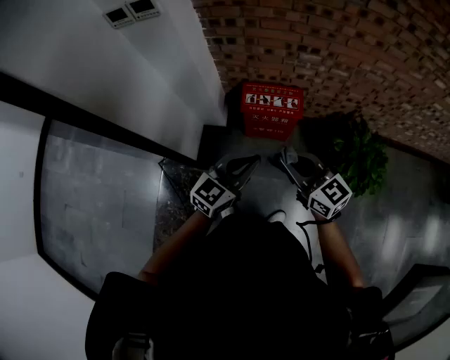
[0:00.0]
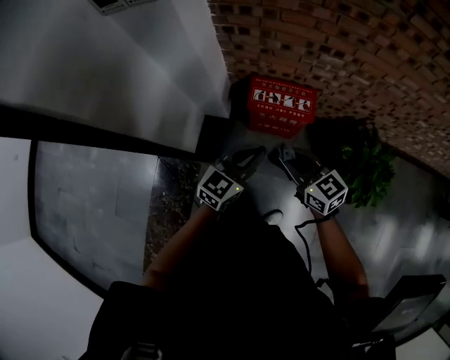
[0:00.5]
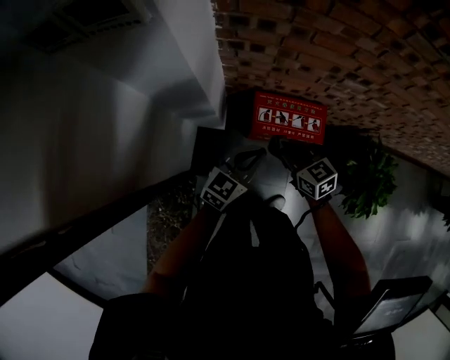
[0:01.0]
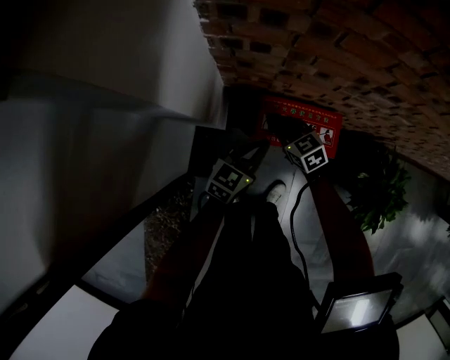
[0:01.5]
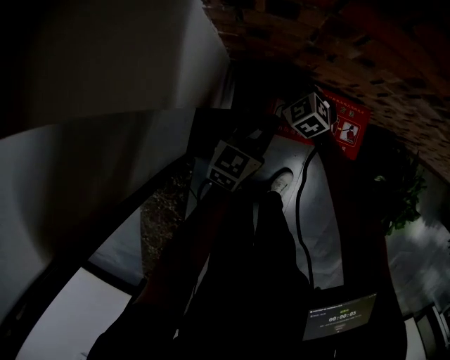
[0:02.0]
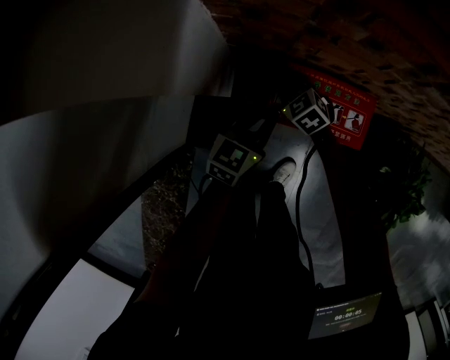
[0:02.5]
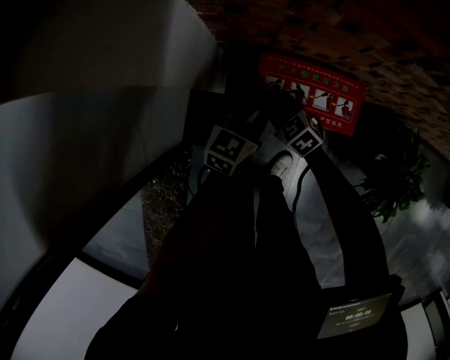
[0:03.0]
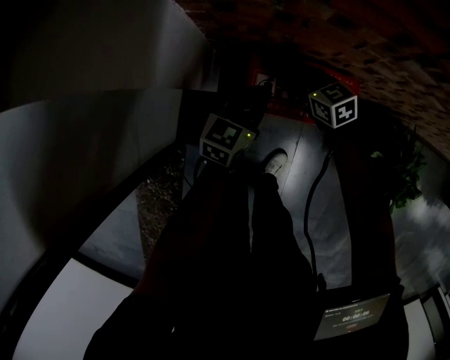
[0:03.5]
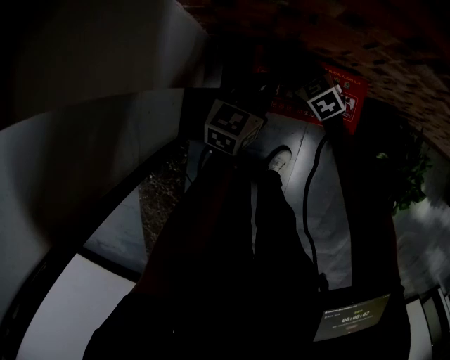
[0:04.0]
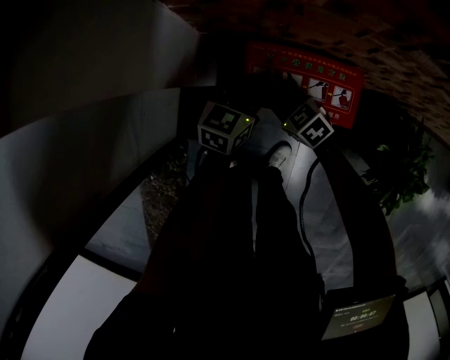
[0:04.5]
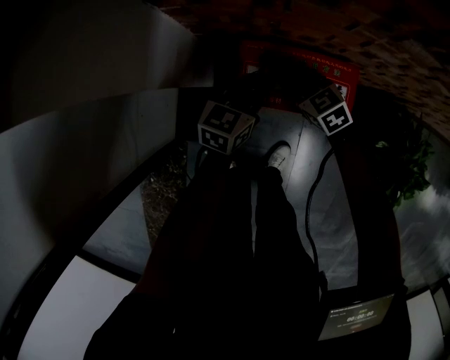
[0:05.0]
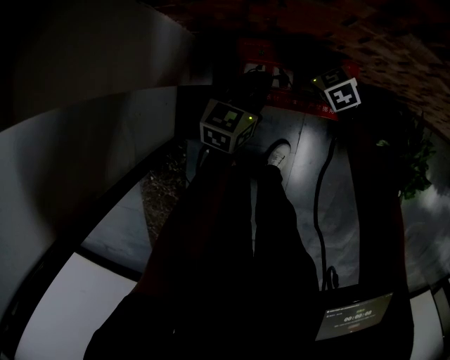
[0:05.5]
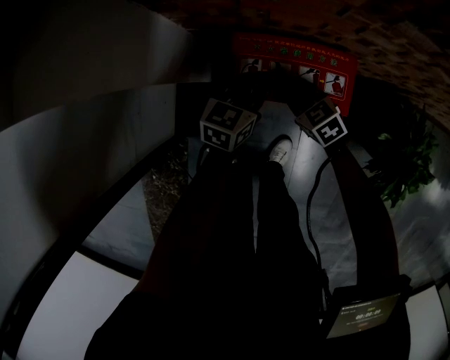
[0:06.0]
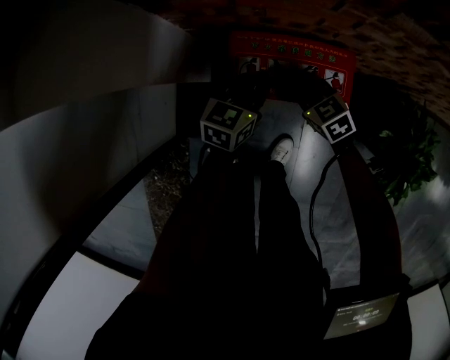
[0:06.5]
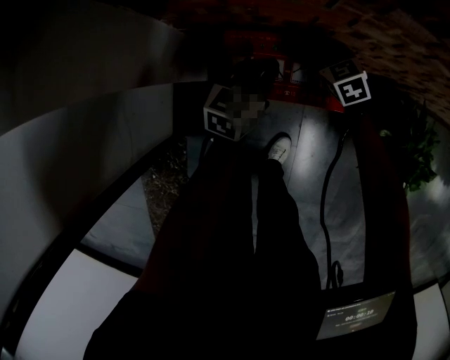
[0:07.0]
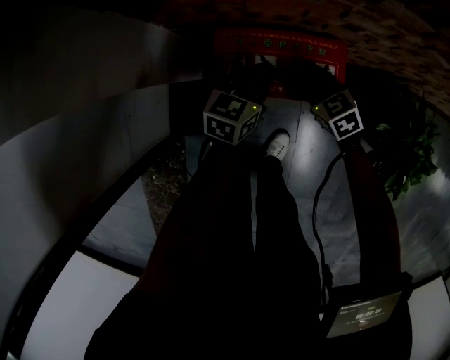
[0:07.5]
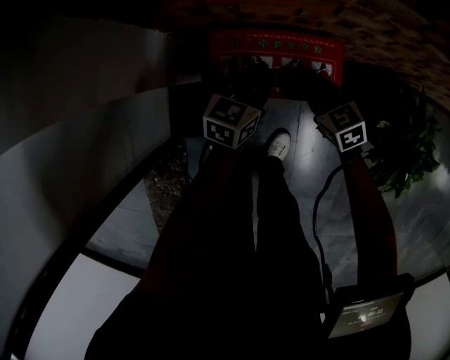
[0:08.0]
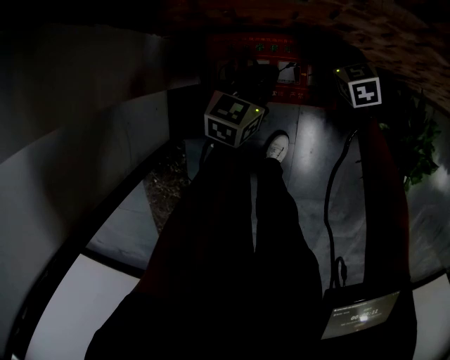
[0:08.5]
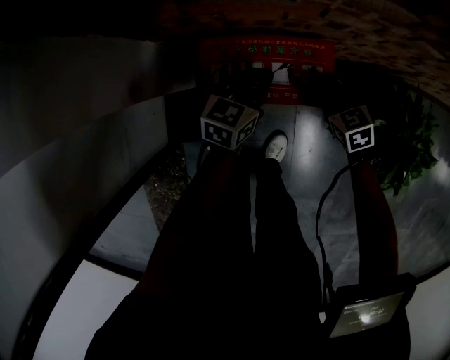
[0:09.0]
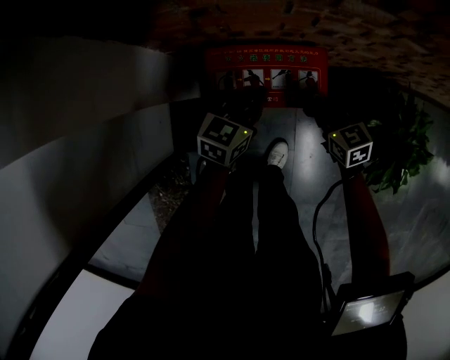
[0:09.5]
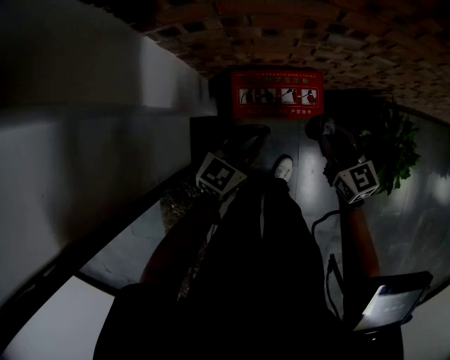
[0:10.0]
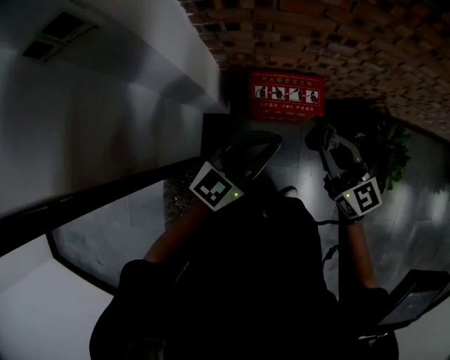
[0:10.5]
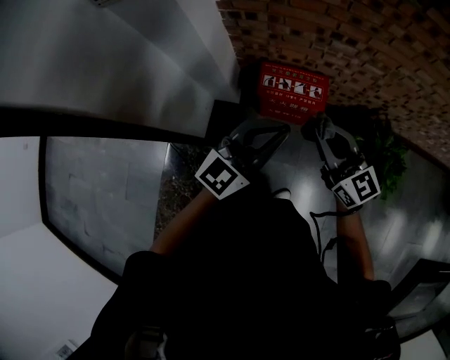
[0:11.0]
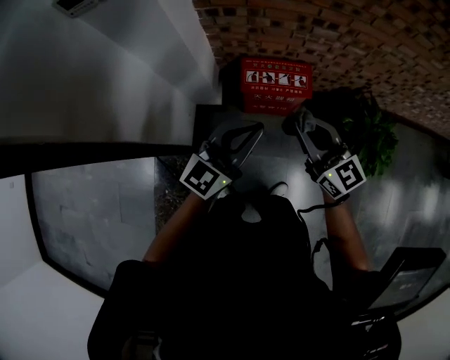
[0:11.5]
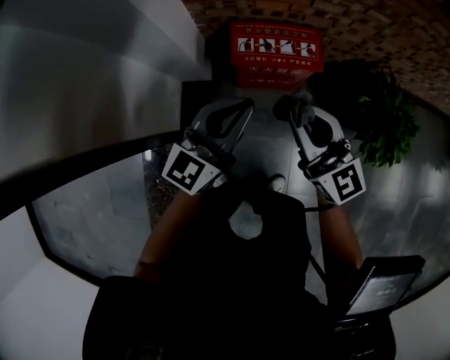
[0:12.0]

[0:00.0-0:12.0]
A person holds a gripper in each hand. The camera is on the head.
0:00.0 to 0:02.0: The two grippers travel together, forward, some 50 cm. The grippers both shift downward by some 40 cm. The right gripper tips its fingers downward by approximately 40 degrees.
0:02.0 to 0:04.0: The left gripper moves roughly 5 cm, while the right gripper goes approximately 5 cm to the right, and reaches approximately 15 cm backward, then returns.
0:04.0 to 0:06.0: The left gripper changes place by approximately 5 cm. Meanwhile the right gripper swings left and right, about 15 cm each way, with 2 reversals.
0:06.0 to 0:08.0: The right gripper goes roughly 10 cm to the right, and reaches some 10 cm forward, then returns. The left gripper shifts roughly 5 cm to the right.
0:08.0 to 0:10.0: The left gripper travels upward and backward by roughly 25 cm, and changes its angle by approximately 20 degrees, while the right gripper shifts some 30 cm upward, and turns by roughly 30 degrees.
0:10.0 to 0:12.0: The right gripper shifts roughly 20 cm backward and to the left, moves some 20 cm upward and comes back, and rotates roughly 20 degrees; the left gripper is displaced backward by roughly 15 cm, goes upward and returns, some 25 cm each way, and swivels roughly 20 degrees.

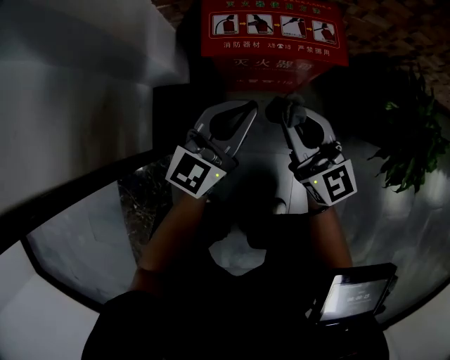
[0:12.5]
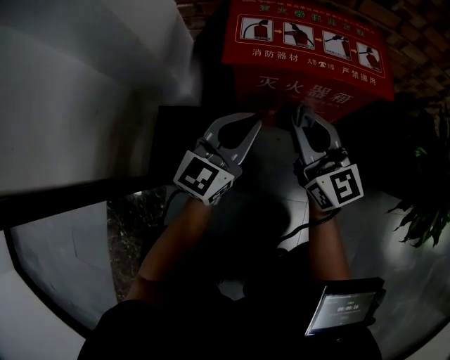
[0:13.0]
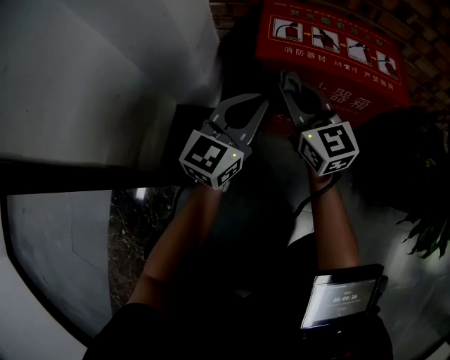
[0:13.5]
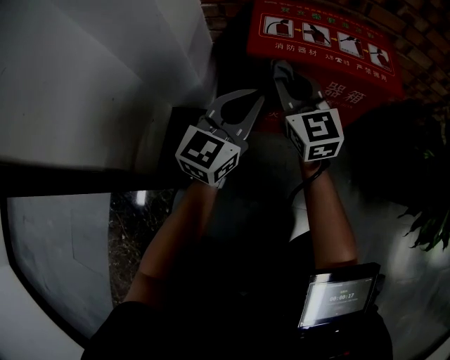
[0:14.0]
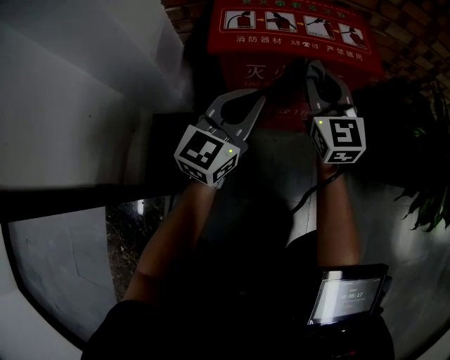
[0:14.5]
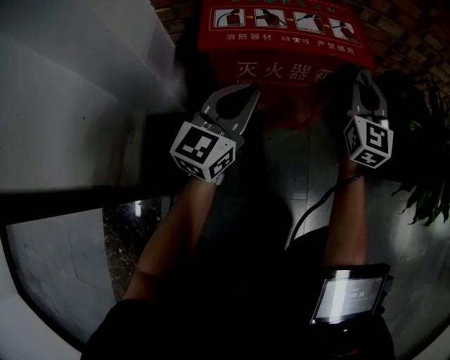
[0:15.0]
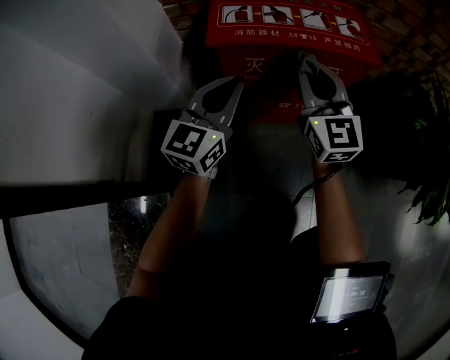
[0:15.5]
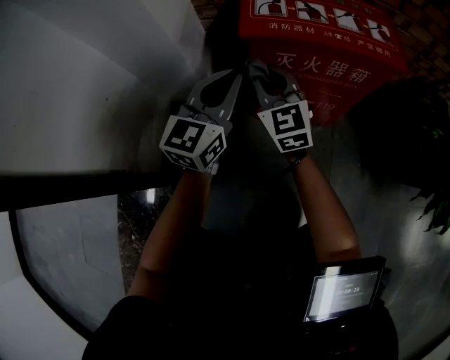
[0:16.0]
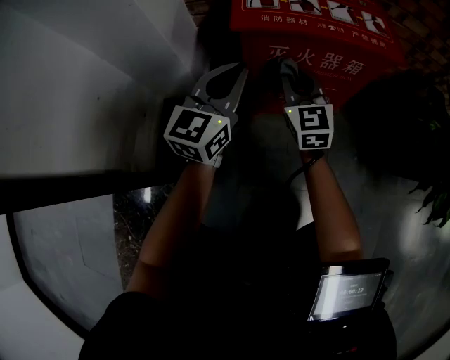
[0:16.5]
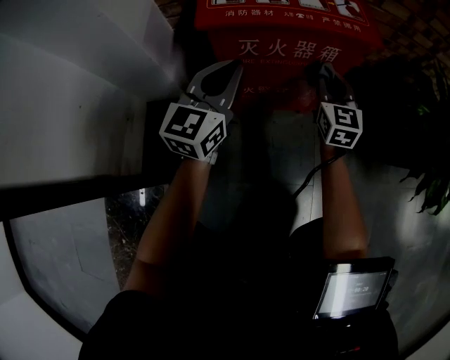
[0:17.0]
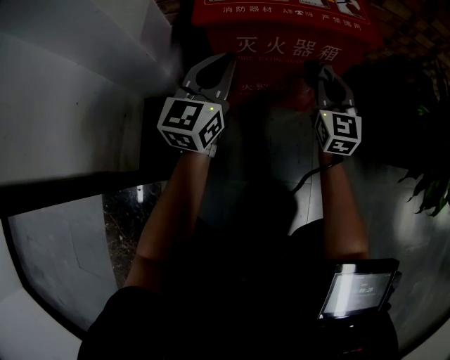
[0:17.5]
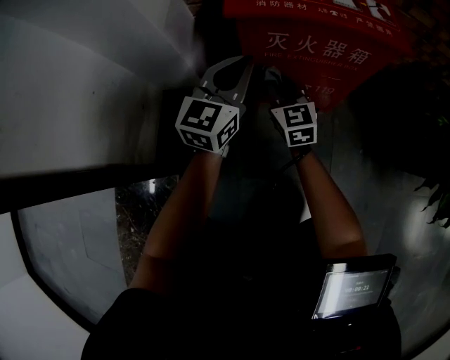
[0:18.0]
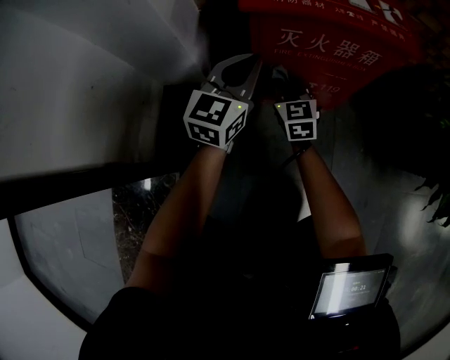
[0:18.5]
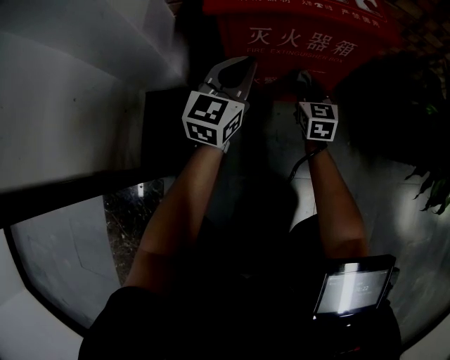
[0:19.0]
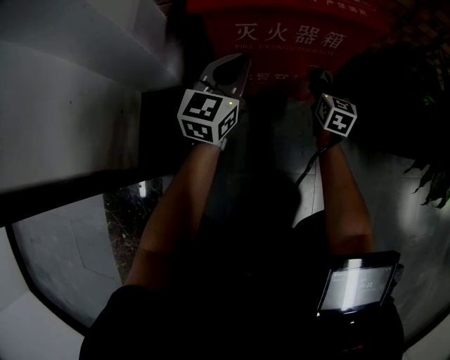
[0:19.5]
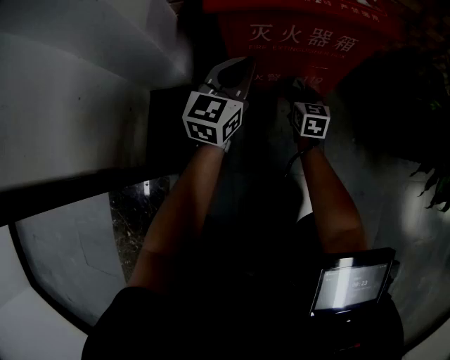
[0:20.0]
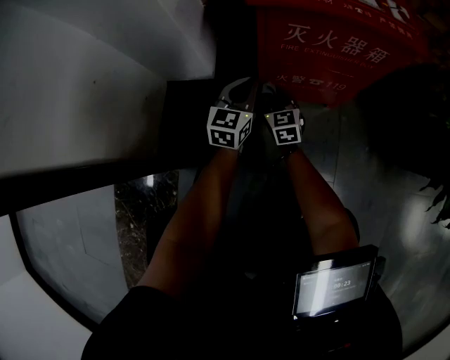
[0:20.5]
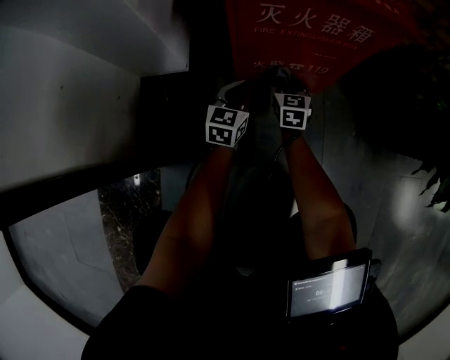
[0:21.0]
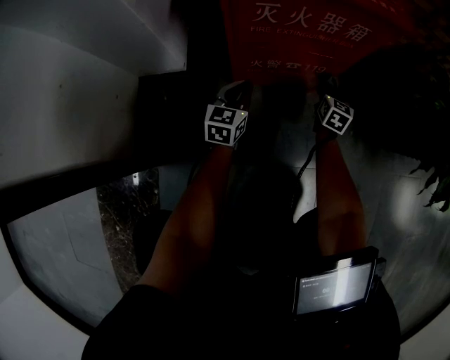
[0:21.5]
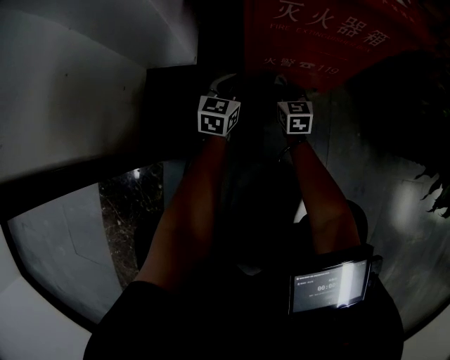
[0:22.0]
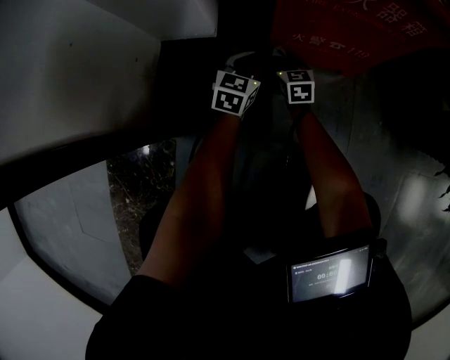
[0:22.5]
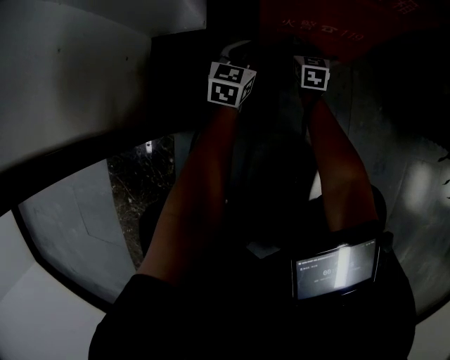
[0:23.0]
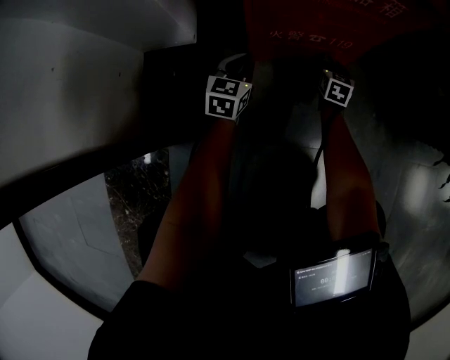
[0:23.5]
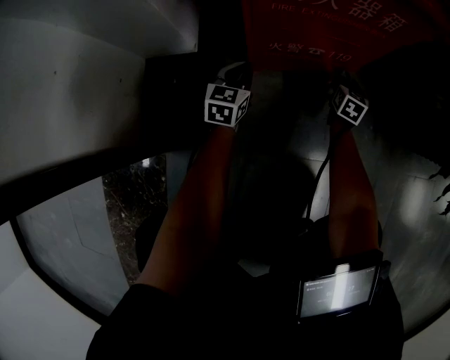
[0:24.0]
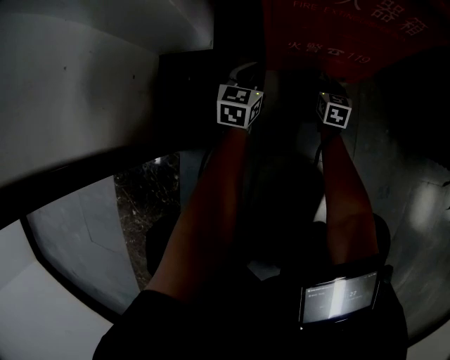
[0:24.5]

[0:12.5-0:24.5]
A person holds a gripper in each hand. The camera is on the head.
0:12.5 to 0:14.5: The left gripper shifts approximately 15 cm downward and forward. The right gripper moves forward and downward, roughly 20 cm, moves roughly 10 cm to the left and comes back, and swivels roughly 30 degrees.
0:14.5 to 0:16.5: The left gripper shifts about 10 cm to the left; the right gripper swings left and right, approximately 30 cm each way, with 2 reversals.
0:16.5 to 0:18.5: The right gripper travels downward by some 15 cm, and goes to the right and returns, some 15 cm each way; the left gripper heads downward, covering about 5 cm.
0:18.5 to 0:20.5: Both grippers move downward, some 15 cm. The right gripper reaches roughly 25 cm to the right, then returns.
0:20.5 to 0:22.5: Both grippers move downward, roughly 10 cm. The right gripper moves some 30 cm to the right and comes back.
0:22.5 to 0:24.5: The right gripper goes approximately 15 cm to the right.

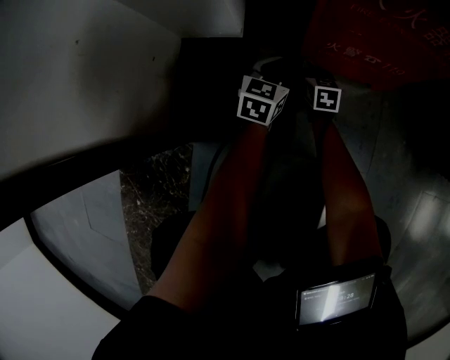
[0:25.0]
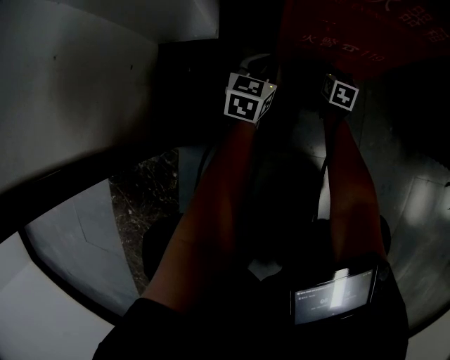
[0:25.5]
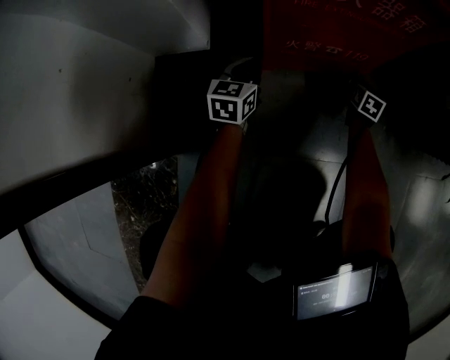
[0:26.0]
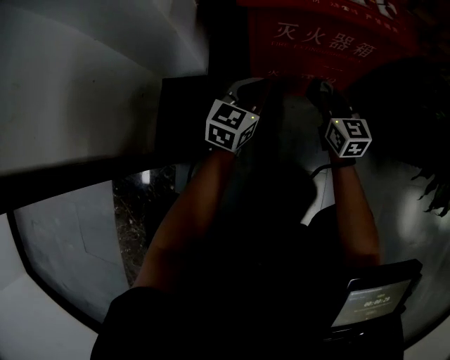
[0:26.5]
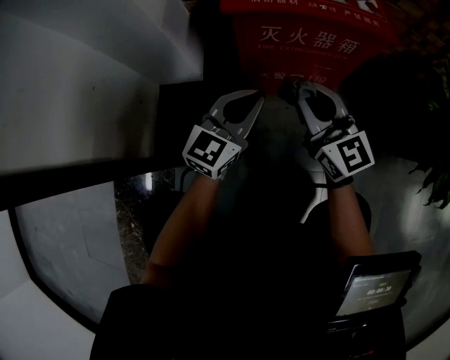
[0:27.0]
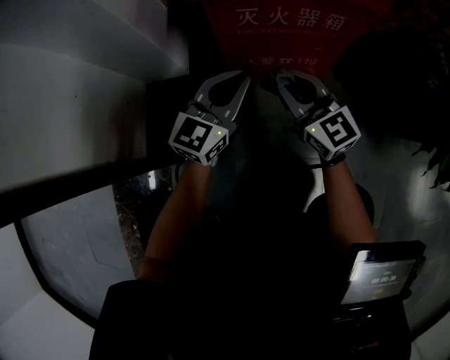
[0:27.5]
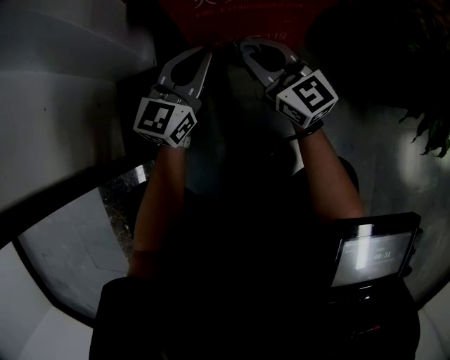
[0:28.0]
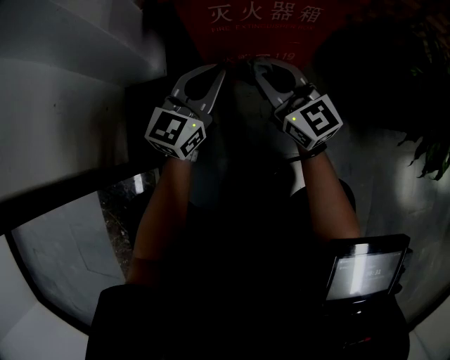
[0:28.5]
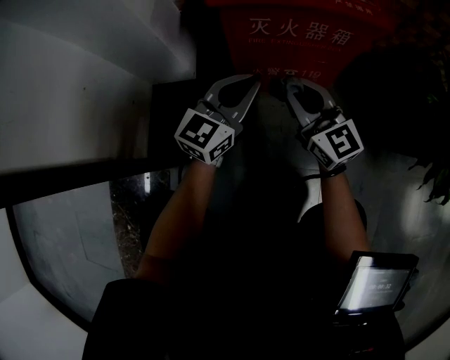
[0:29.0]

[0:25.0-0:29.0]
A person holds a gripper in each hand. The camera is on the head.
0:25.0 to 0:27.0: The right gripper heads upward, covering about 40 cm, and tips its fingers upward by roughly 40 degrees, while the left gripper heads upward, covering roughly 25 cm, and rotates about 30 degrees.
0:27.0 to 0:29.0: The right gripper shifts by roughly 5 cm.
